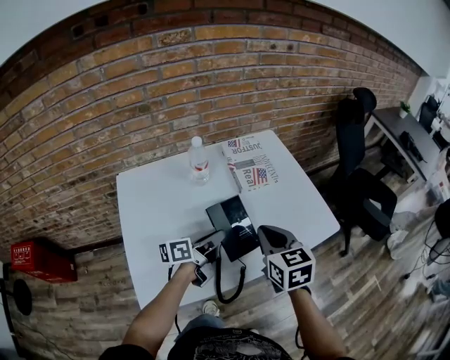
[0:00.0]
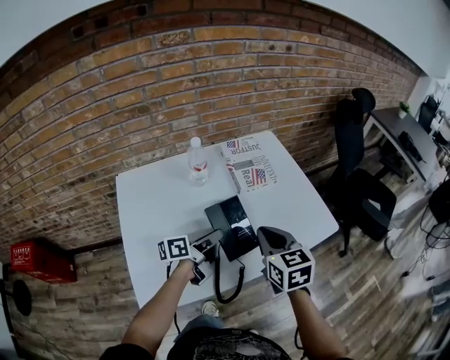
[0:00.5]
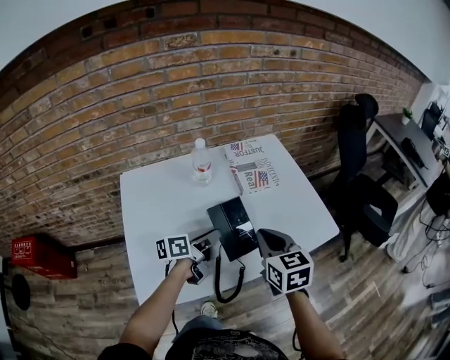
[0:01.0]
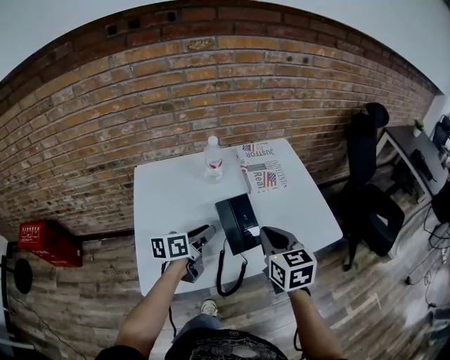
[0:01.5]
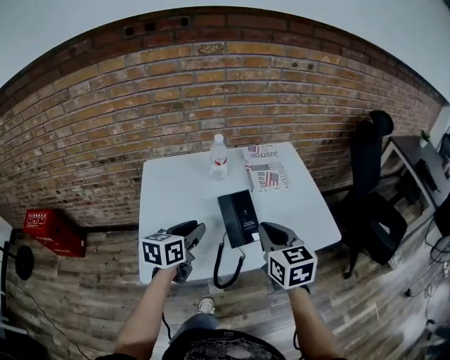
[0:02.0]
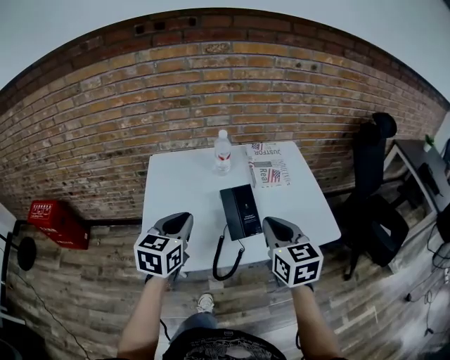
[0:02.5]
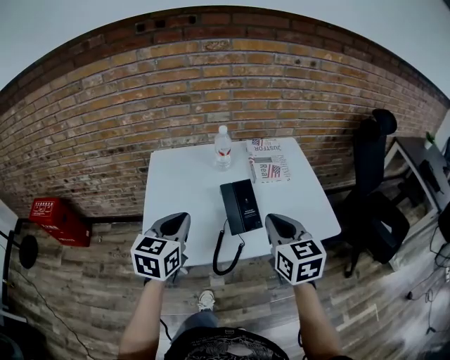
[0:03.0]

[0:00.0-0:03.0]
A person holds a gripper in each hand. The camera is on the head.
0:00.0 to 0:01.5: The left gripper changes place by some 5 cm, and changes its angle by some 20 degrees.
0:01.5 to 0:03.0: The right gripper heads backward and upward, covering some 10 cm, while the left gripper goes approximately 15 cm upward and backward, swivels about 40 degrees, and closes.

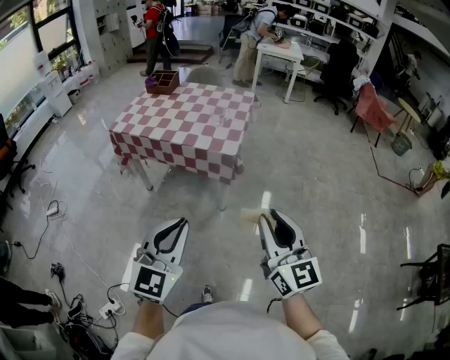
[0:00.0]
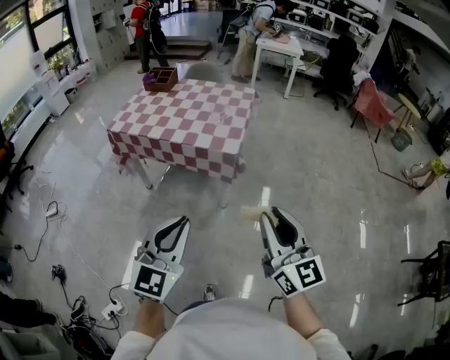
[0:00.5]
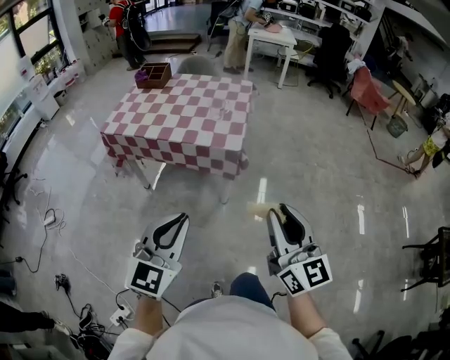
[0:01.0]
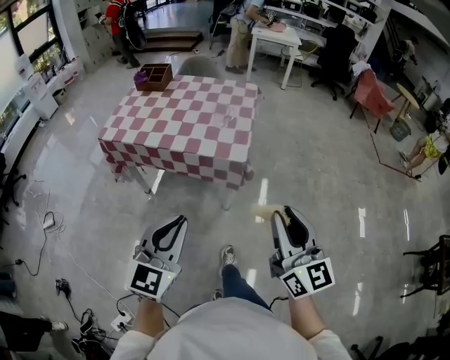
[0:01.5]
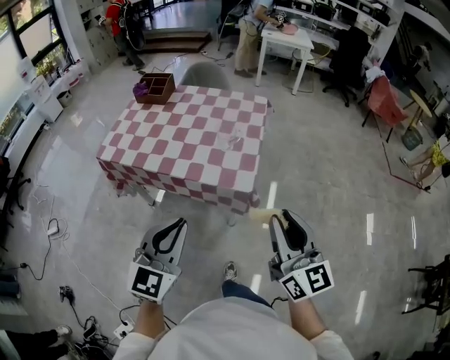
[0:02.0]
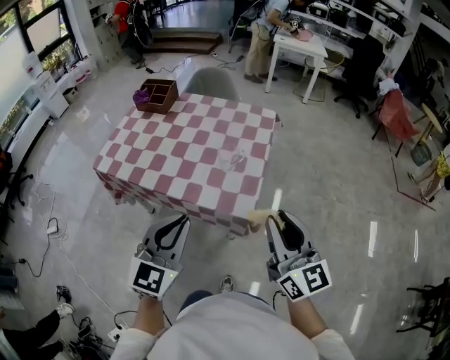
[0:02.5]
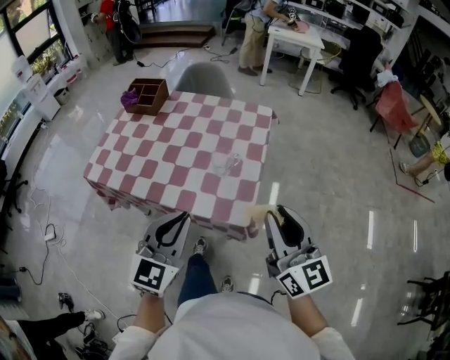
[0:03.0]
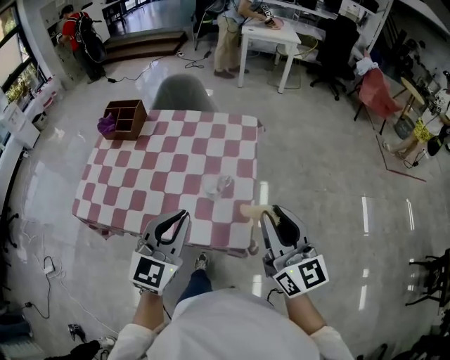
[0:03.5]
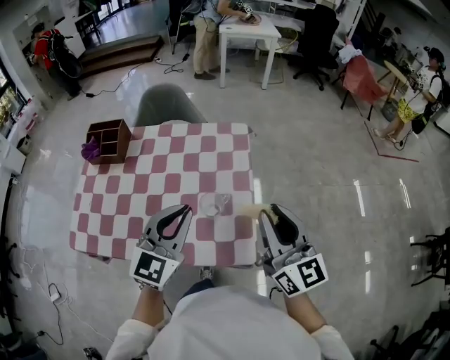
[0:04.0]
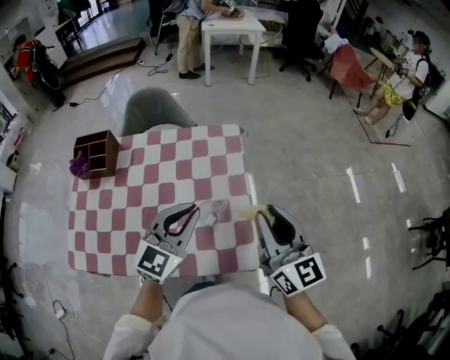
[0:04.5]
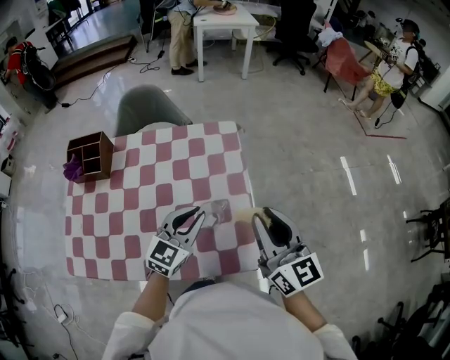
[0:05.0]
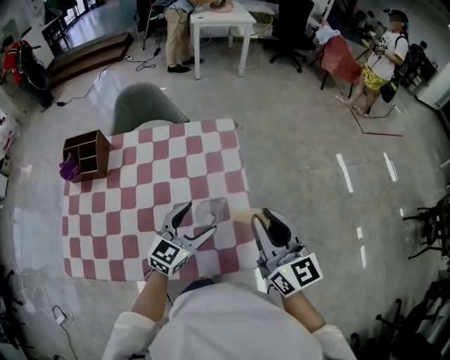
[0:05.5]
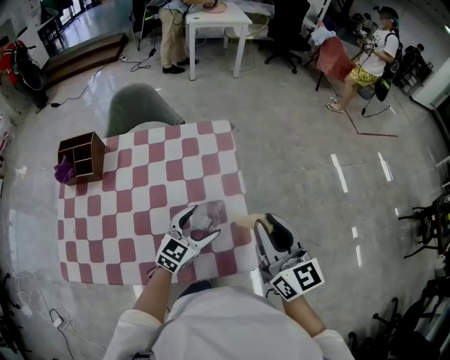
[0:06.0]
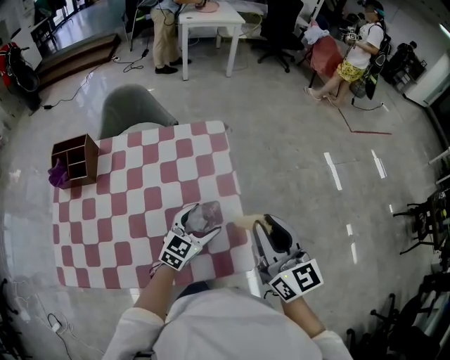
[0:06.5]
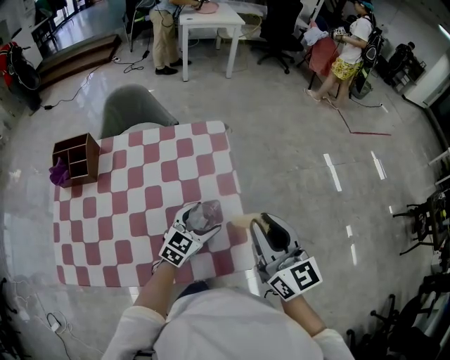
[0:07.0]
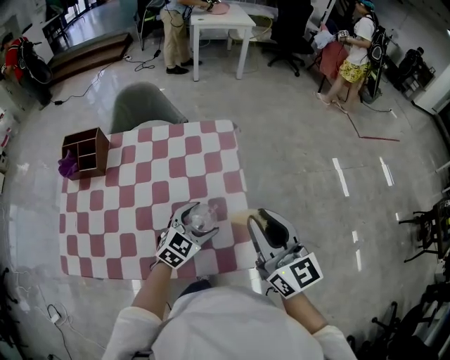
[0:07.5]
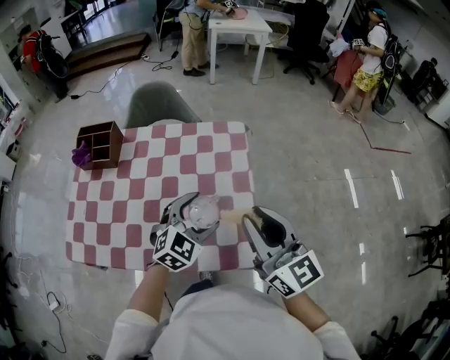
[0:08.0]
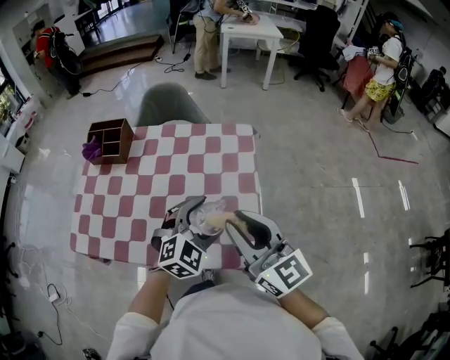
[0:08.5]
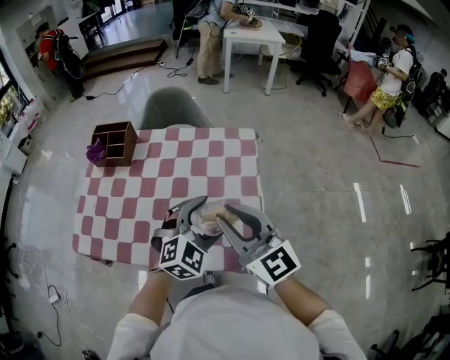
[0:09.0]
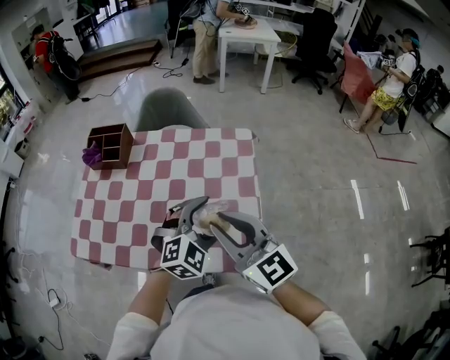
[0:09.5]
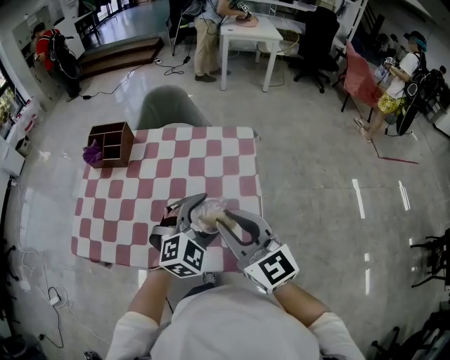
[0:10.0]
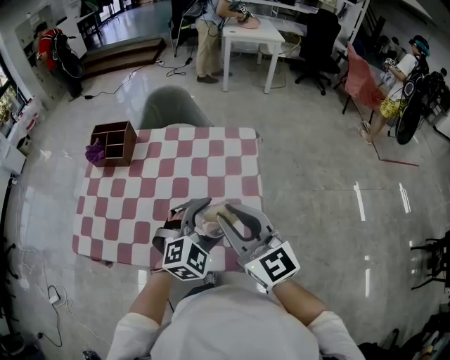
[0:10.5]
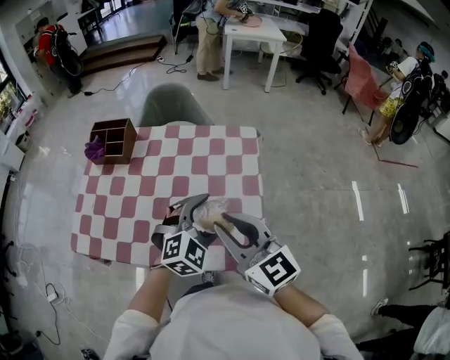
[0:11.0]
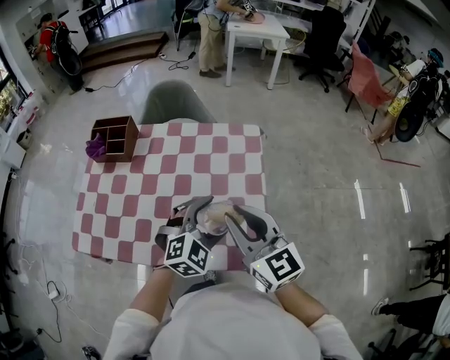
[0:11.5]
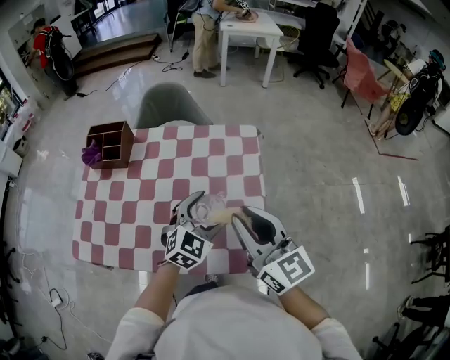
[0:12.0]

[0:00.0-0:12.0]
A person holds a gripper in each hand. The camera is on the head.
0:00.0 to 0:02.0: Both grippers travel together forward, about 25 cm.
0:02.0 to 0:04.0: Both grippers move forward, roughly 35 cm.
0:04.0 to 0:06.0: The right gripper heads downward, covering roughly 5 cm. The left gripper is displaced downward by some 20 cm, turns by roughly 30 degrees, and opens its fingers.
0:06.0 to 0:08.0: The right gripper changes place by some 5 cm. The left gripper heads upward, covering roughly 10 cm, and rotates approximately 20 degrees.
0:08.0 to 0:10.0: The right gripper travels to the left by about 5 cm.
0:10.0 to 0:12.0: The left gripper moves roughly 5 cm.

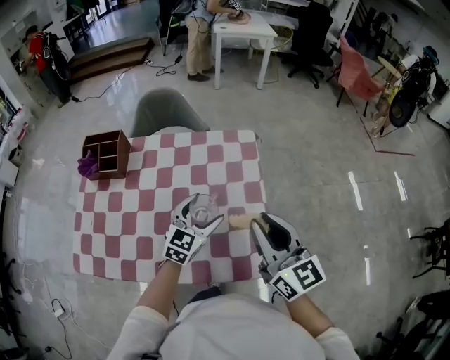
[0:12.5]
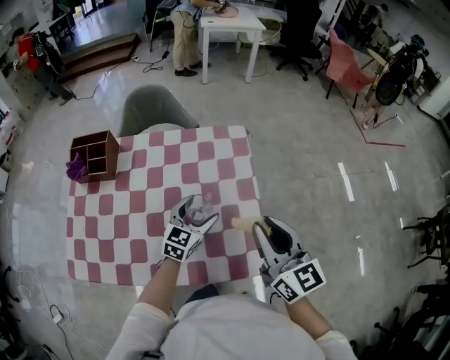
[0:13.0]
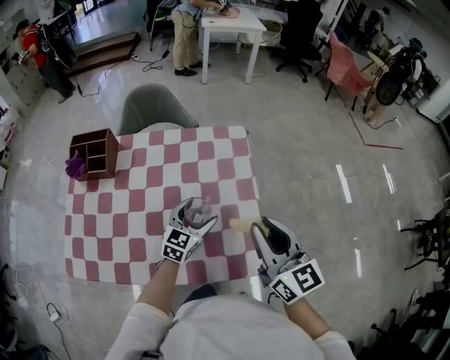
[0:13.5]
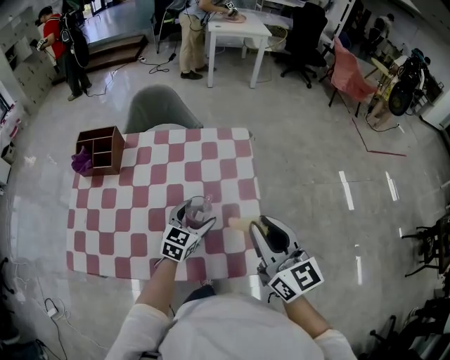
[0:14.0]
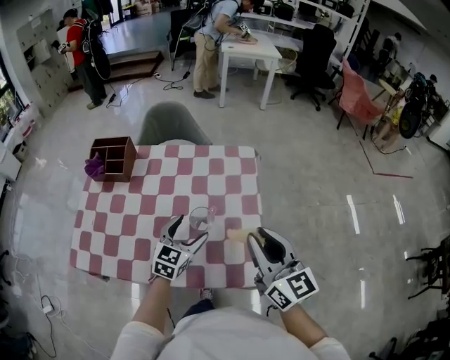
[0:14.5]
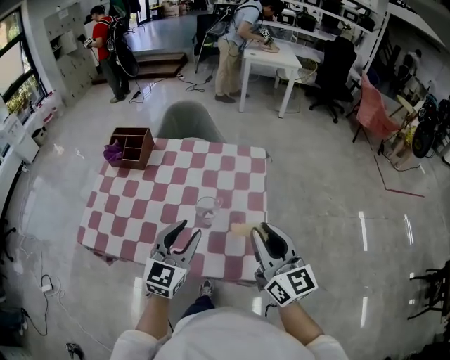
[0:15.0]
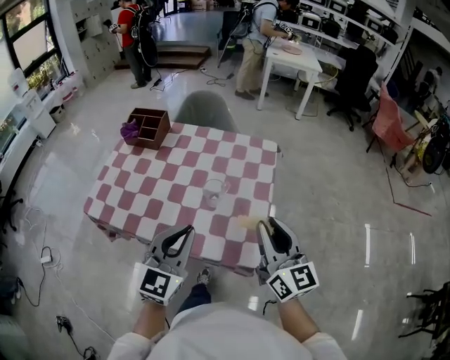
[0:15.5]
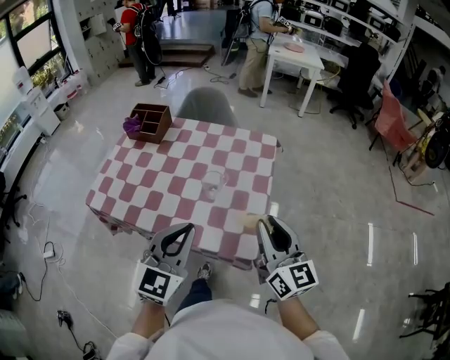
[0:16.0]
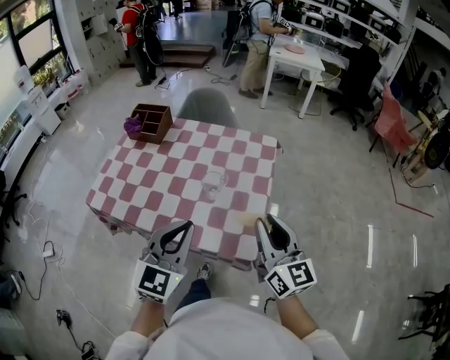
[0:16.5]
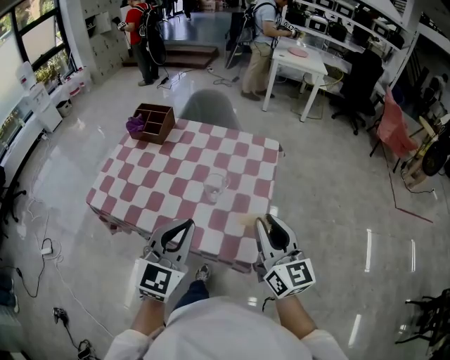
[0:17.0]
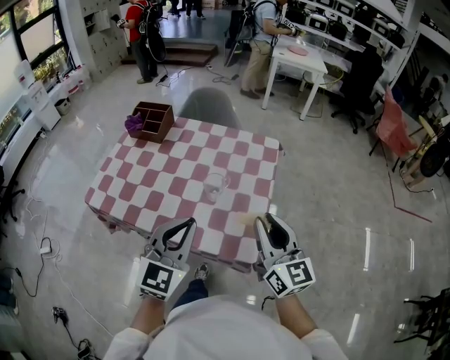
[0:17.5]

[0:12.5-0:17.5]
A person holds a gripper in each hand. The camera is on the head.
0:12.5 to 0:15.0: The left gripper moves backward and upward, roughly 15 cm, and closes. Meanwhile the right gripper ends up about 5 cm from where it was.
0:15.0 to 0:17.5: The left gripper is displaced backward and upward by roughly 10 cm, and closes up.

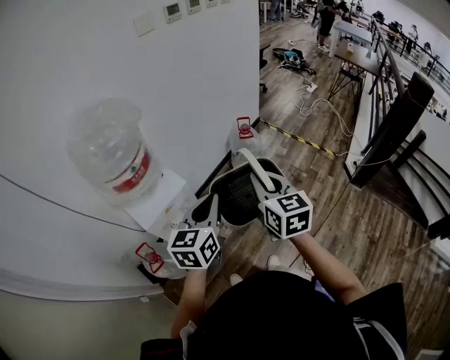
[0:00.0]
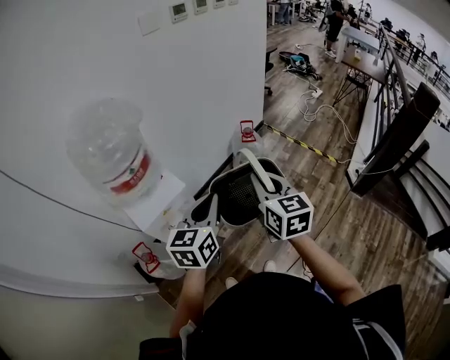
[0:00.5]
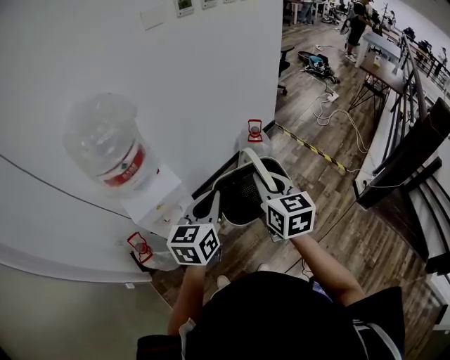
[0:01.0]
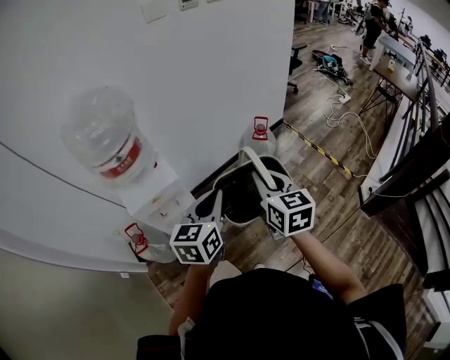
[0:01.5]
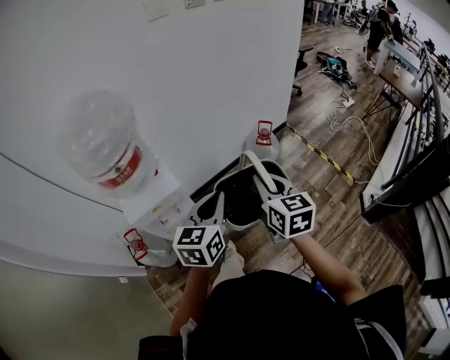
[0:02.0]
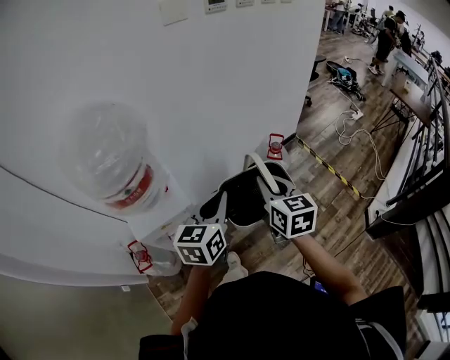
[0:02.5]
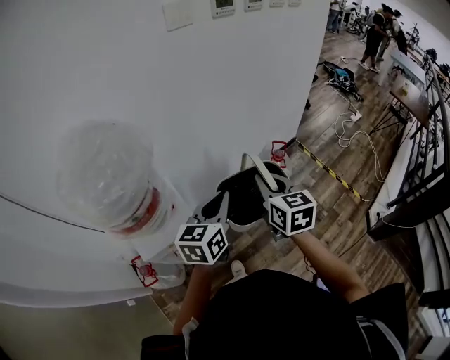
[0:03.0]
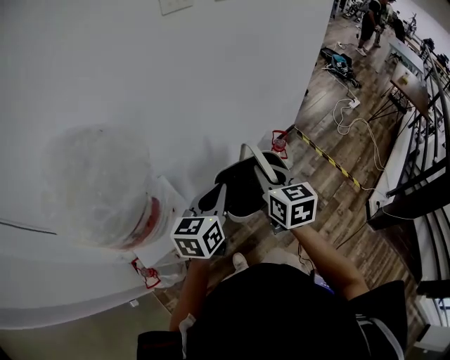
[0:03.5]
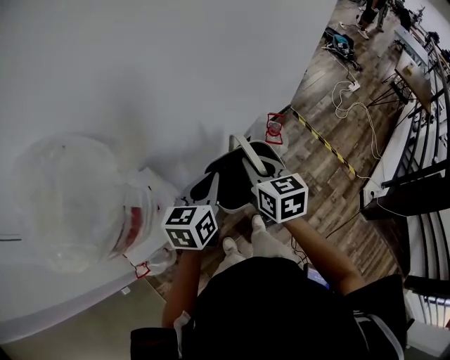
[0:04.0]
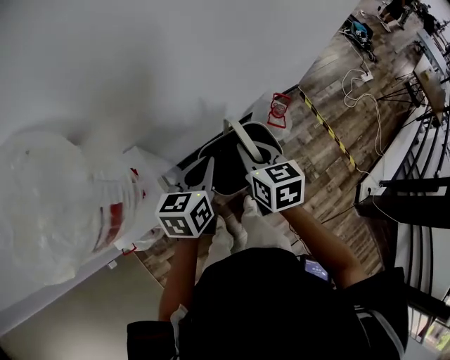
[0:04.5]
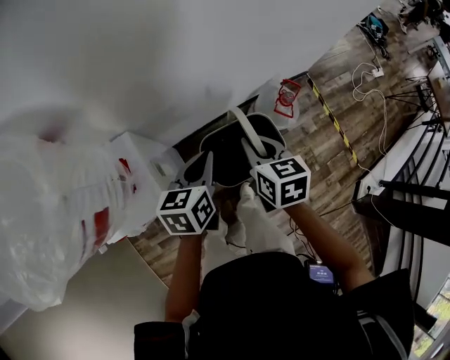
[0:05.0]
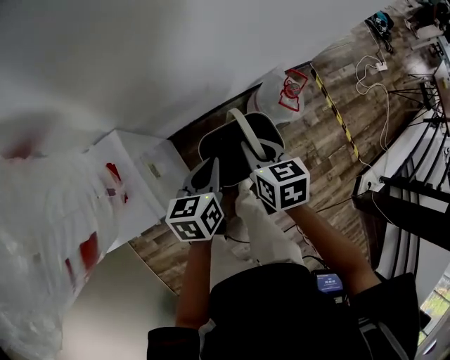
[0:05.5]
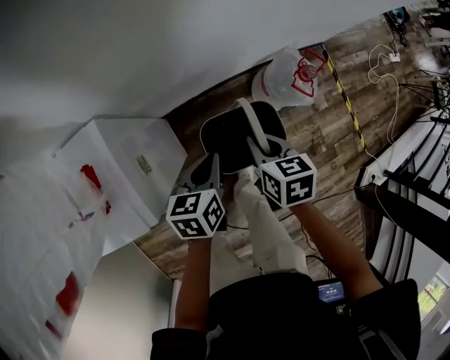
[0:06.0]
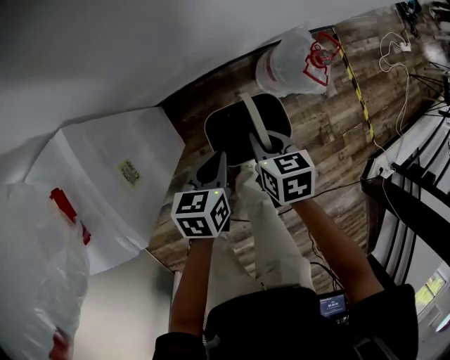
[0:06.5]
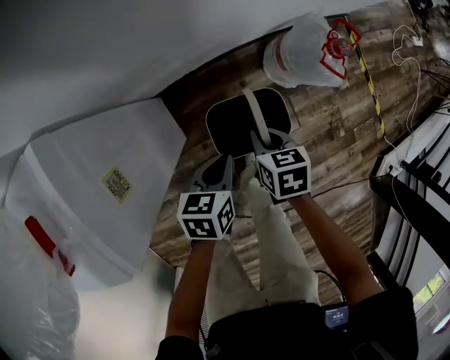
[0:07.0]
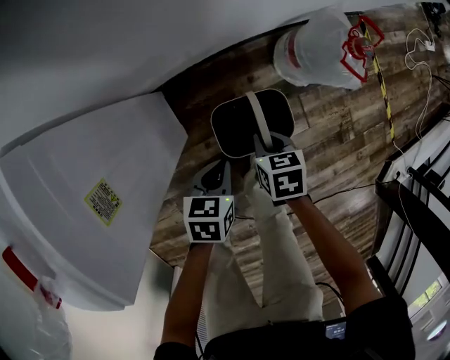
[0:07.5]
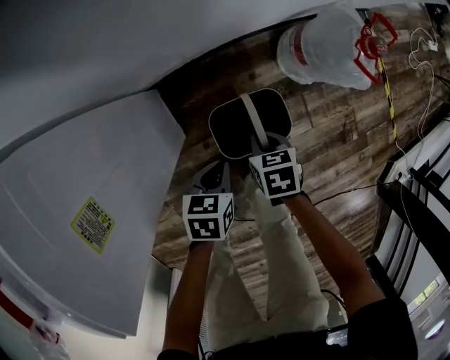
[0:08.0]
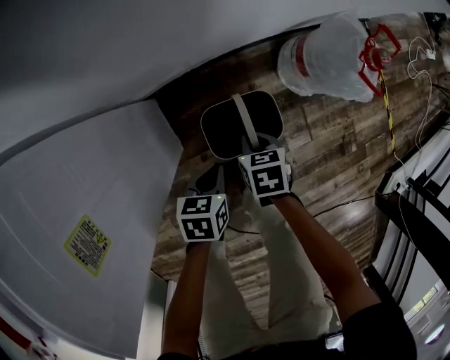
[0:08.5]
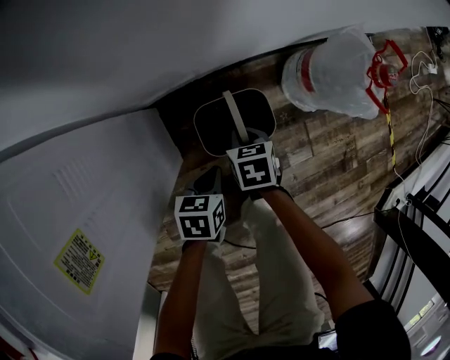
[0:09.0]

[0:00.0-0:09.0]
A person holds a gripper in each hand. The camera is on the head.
0:00.0 to 0:02.0: The grippers both shift forward and to the right by about 10 cm.
0:02.0 to 0:04.5: The two grippers go roughly 30 cm forward.
0:04.5 to 0:07.0: The grippers both shift downward by approximately 40 cm. The right gripper changes its angle by approximately 30 degrees; the left gripper rotates about 30 degrees.
0:07.0 to 0:09.0: Both grippers travel together downward, some 20 cm.
